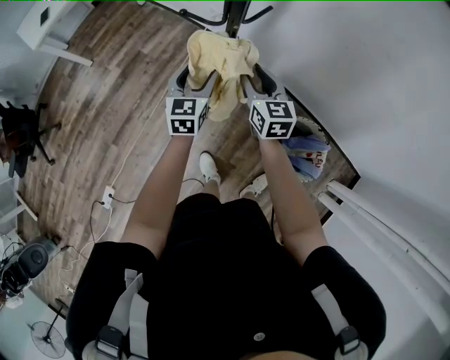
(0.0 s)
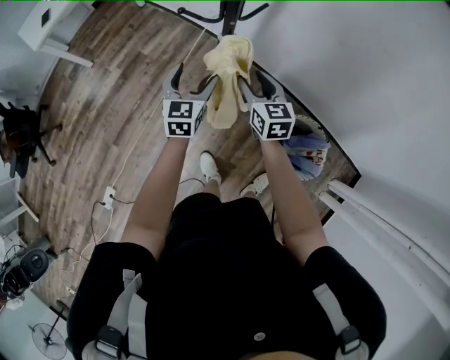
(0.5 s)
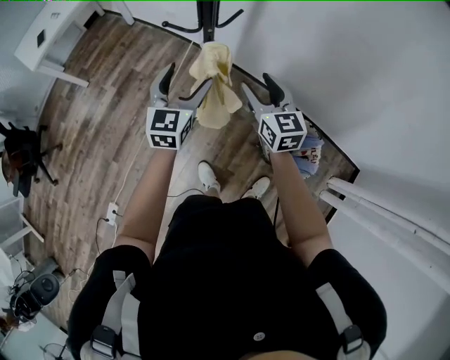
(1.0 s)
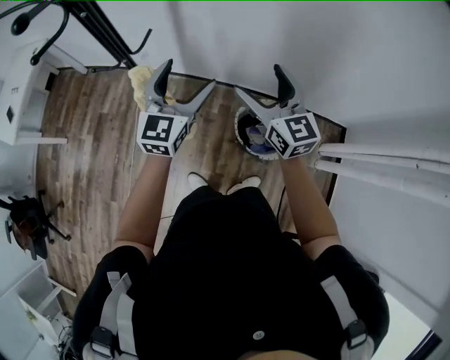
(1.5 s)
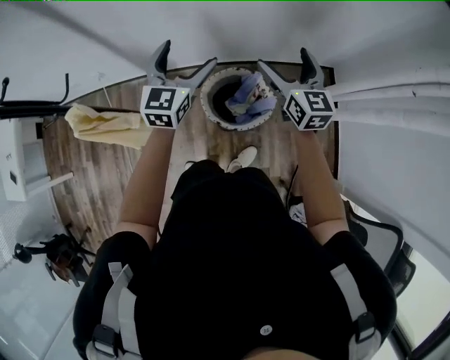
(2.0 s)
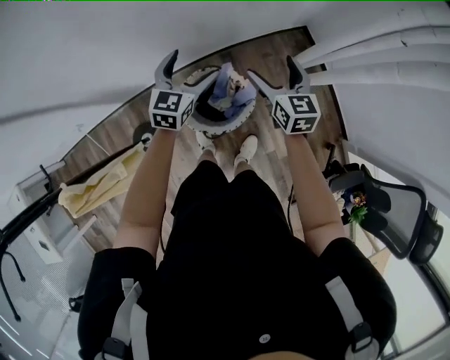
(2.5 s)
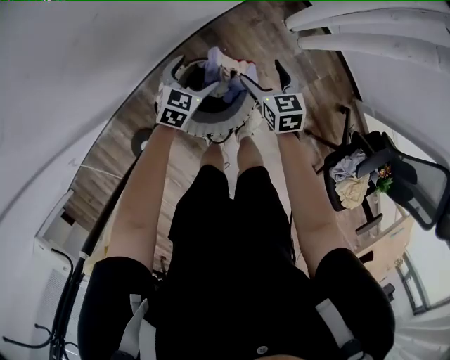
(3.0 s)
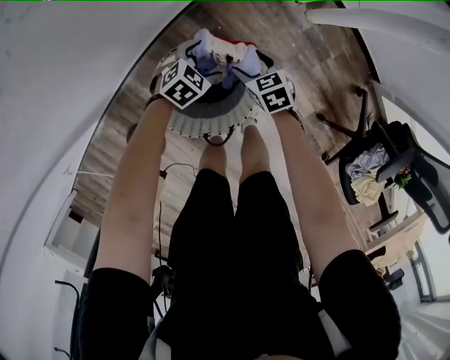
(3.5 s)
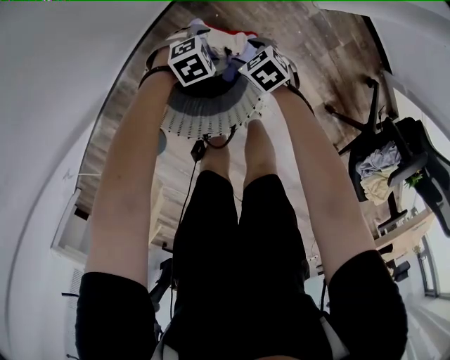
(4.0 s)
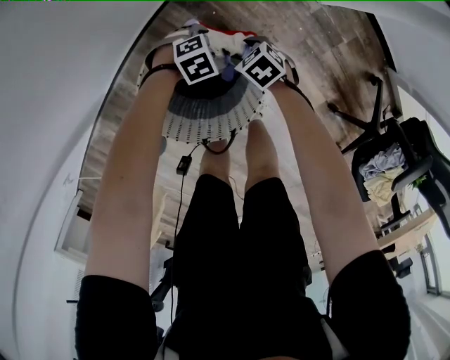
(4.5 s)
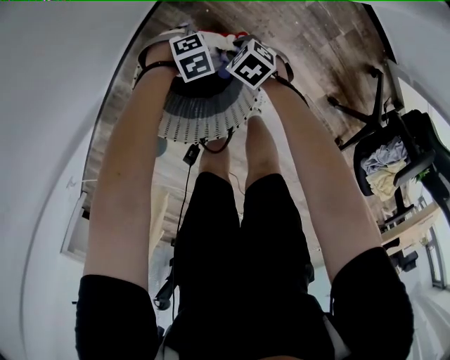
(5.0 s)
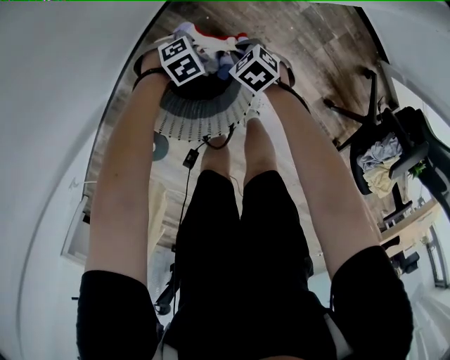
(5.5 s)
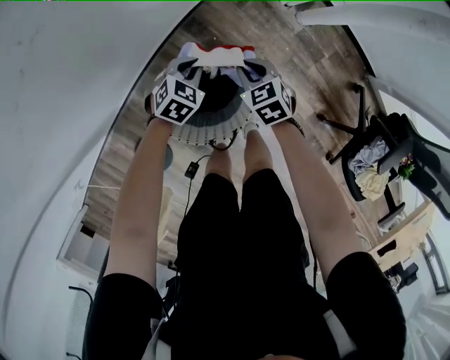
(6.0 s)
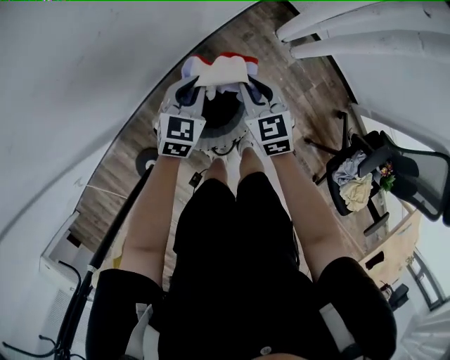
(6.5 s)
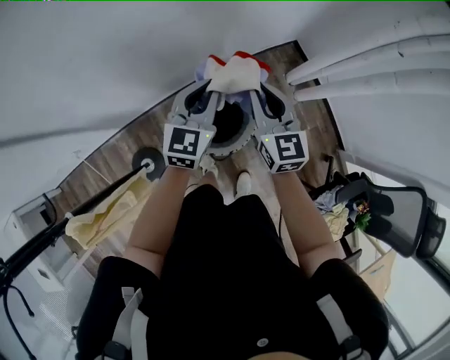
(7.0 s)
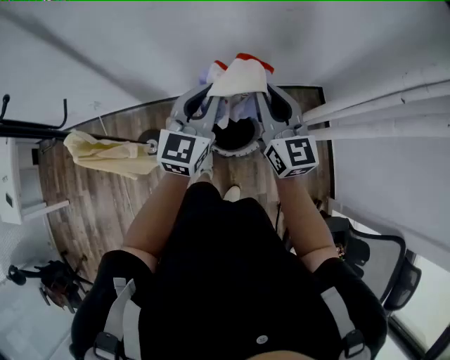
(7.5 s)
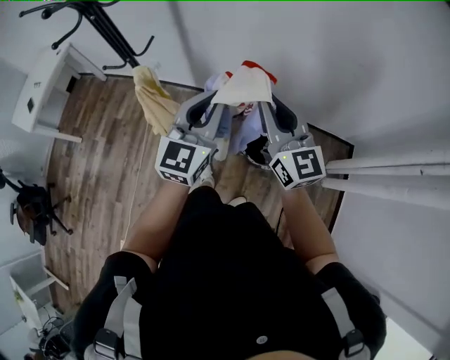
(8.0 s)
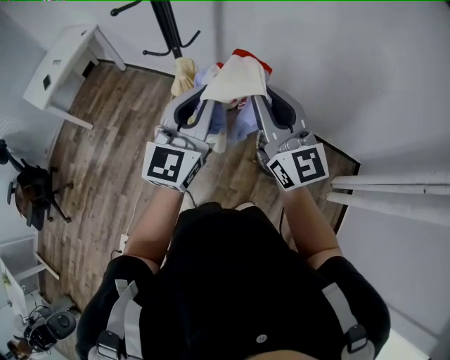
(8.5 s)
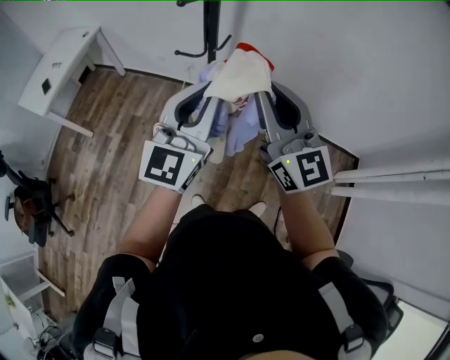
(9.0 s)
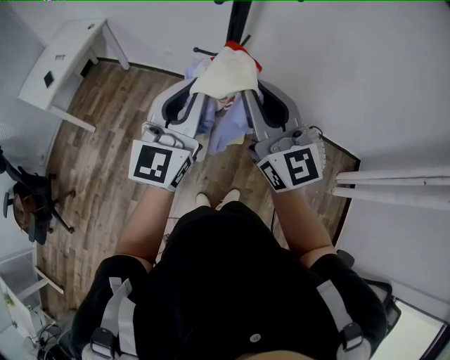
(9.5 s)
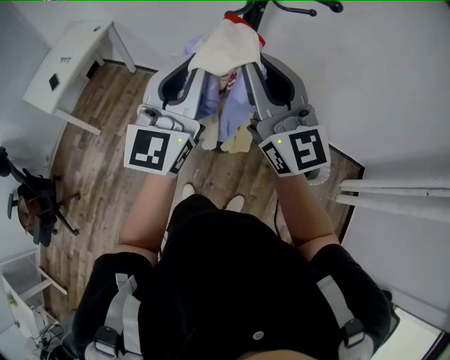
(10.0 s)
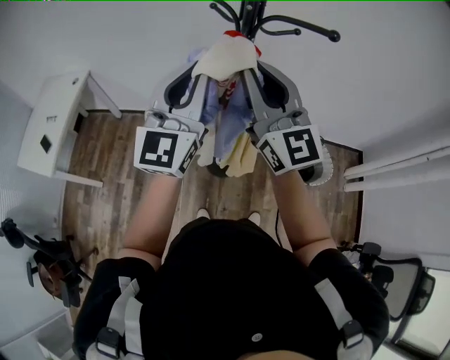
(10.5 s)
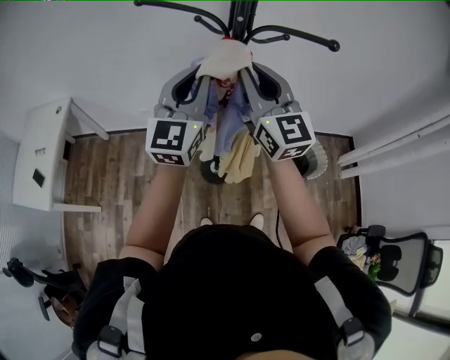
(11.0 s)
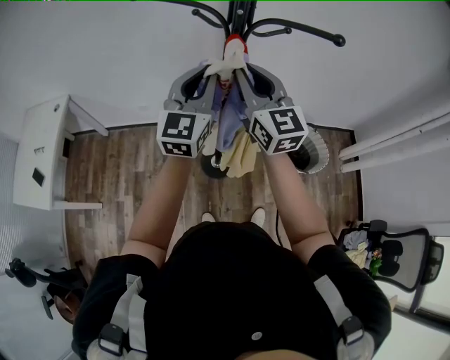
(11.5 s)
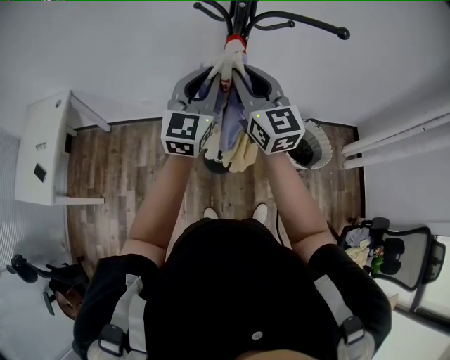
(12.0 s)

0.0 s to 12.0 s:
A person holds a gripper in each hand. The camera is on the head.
0.0 to 2.0 s: Both grippers are carried approximately 60 cm. The left gripper swivels some 50 degrees, and opens its fingers; the right gripper turns by about 40 degrees, and opens its fingers.
2.0 to 4.0 s: The grippers both shift downward by some 70 cm. The right gripper angles its fingers downward, by about 50 degrees, and closes its fingers. The left gripper points its fingers some 60 degrees further downward.
4.0 to 6.0 s: Both grippers travel together upward, about 15 cm. The left gripper swivels some 30 degrees, and closes its fingers, while the right gripper turns by some 20 degrees, and closes its fingers.
6.0 to 8.0 s: The pair of grippers is taken roughly 50 cm. Both grippers move upward, roughly 60 cm. The left gripper tilts its fingers some 60 degrees upward. The right gripper angles its fingers upward, by some 60 degrees.
8.0 to 10.0 s: The two grippers travel together, to the left, about 50 cm.
10.0 to 12.0 s: The grippers both shift forward and downward by roughly 20 cm. The right gripper swivels about 30 degrees. The left gripper rotates some 20 degrees.

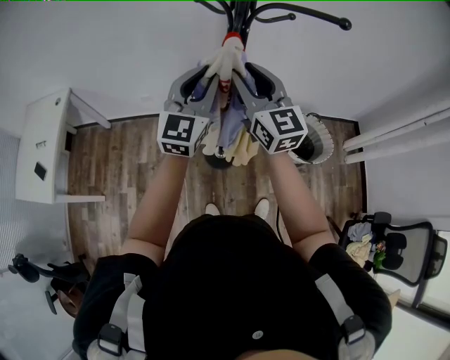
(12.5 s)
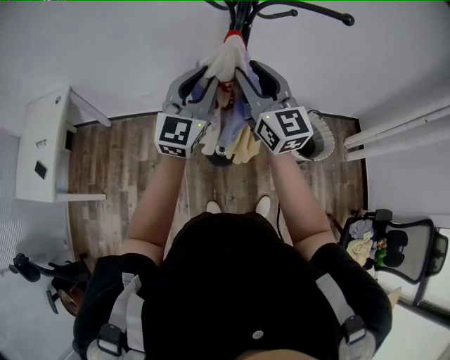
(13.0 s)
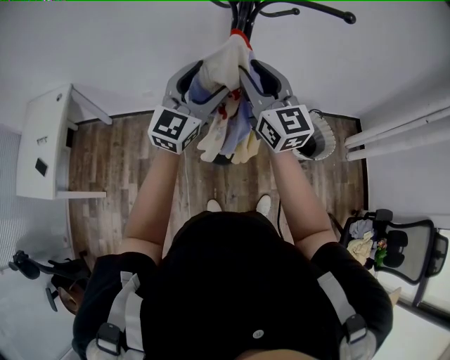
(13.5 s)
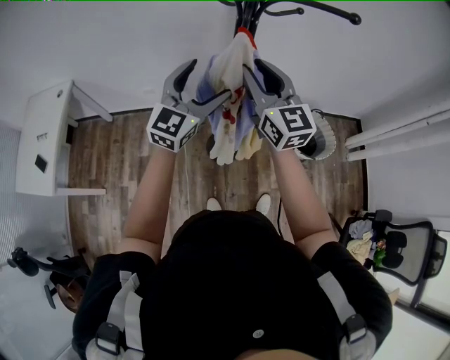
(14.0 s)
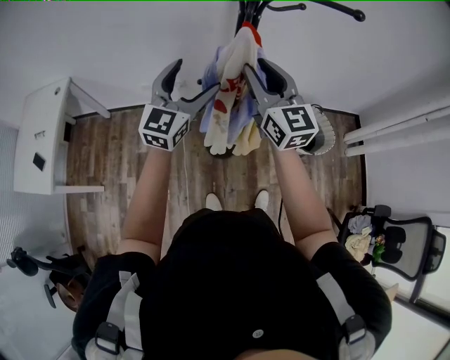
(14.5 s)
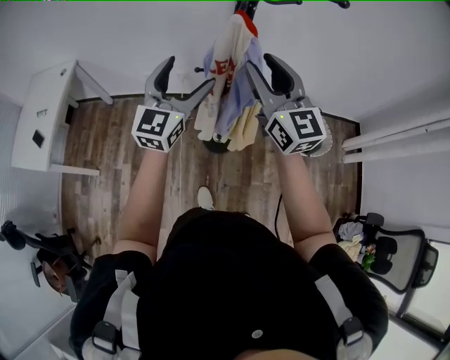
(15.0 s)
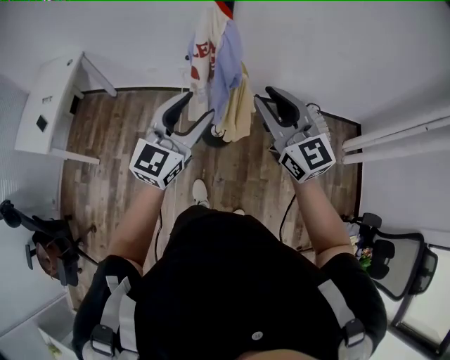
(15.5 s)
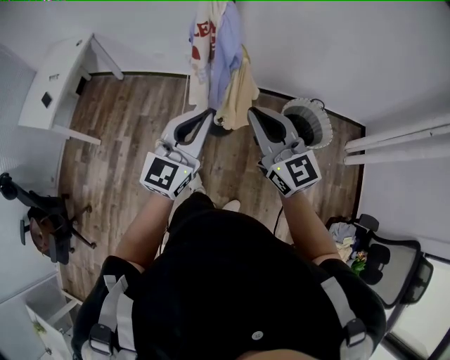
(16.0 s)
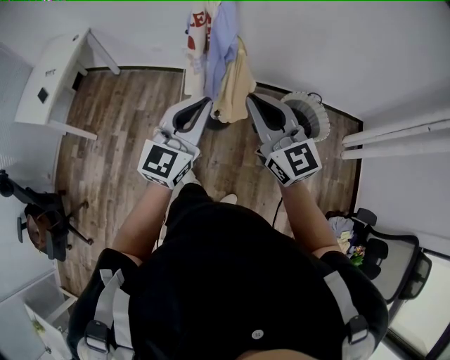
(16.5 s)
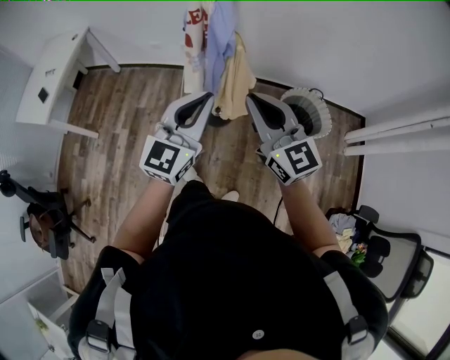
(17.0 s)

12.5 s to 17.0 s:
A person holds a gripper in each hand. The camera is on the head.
12.5 to 14.5 s: The left gripper changes place by about 5 cm, and opens up.
14.5 to 17.0 s: The left gripper moves backward and to the right, roughly 30 cm, and closes; the right gripper shifts about 25 cm backward, and rotates roughly 20 degrees.

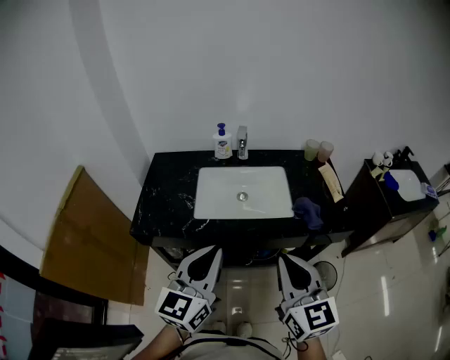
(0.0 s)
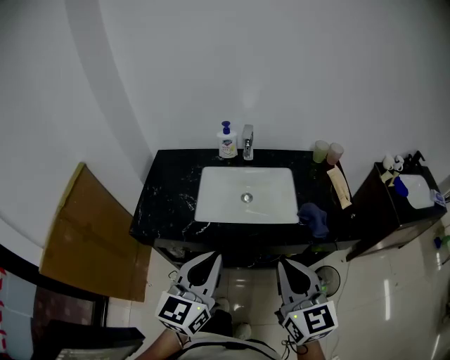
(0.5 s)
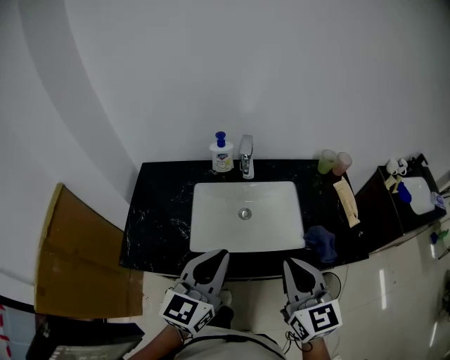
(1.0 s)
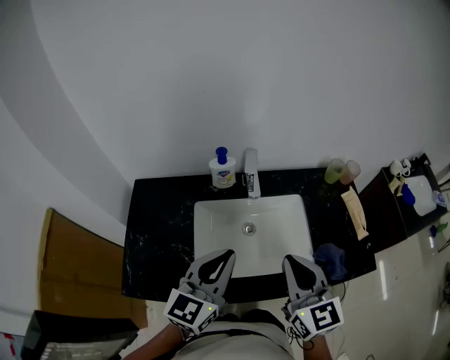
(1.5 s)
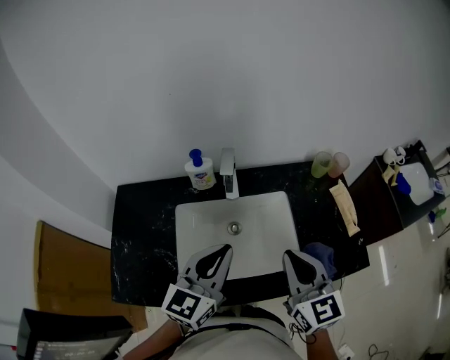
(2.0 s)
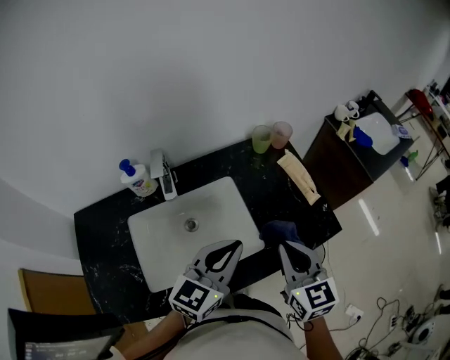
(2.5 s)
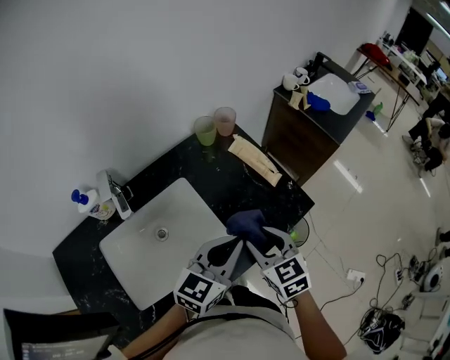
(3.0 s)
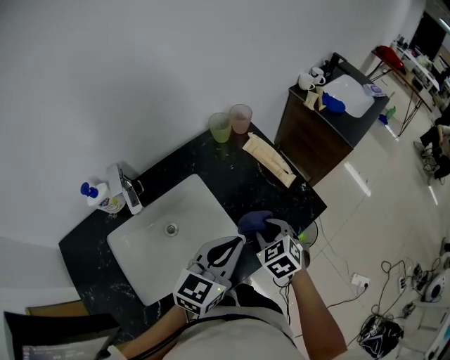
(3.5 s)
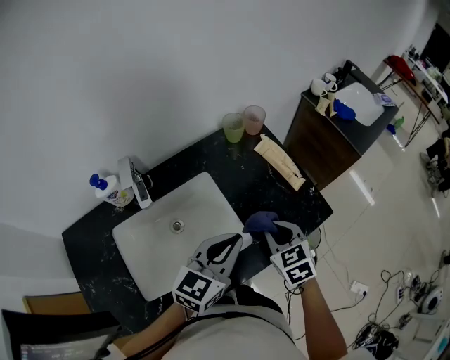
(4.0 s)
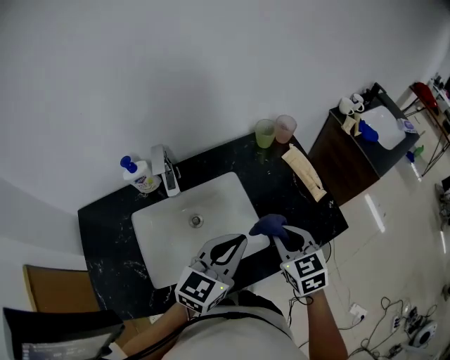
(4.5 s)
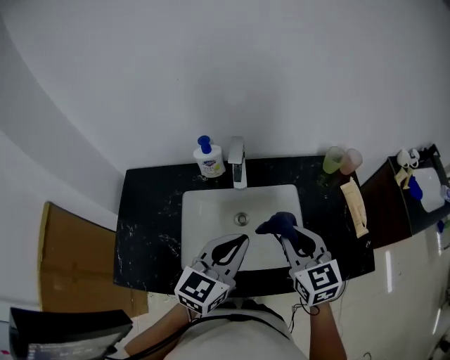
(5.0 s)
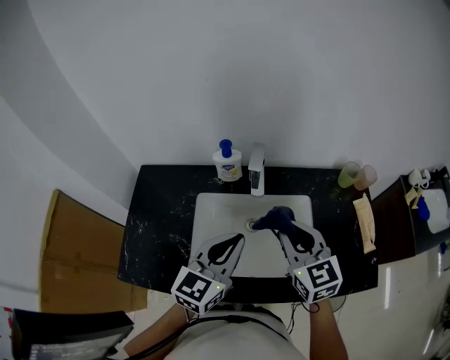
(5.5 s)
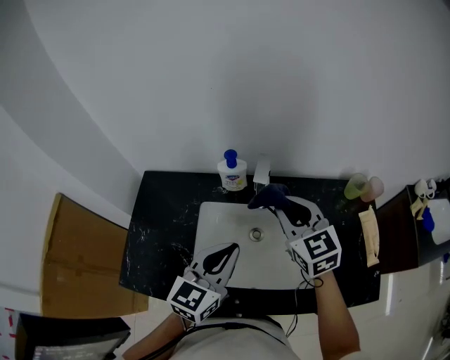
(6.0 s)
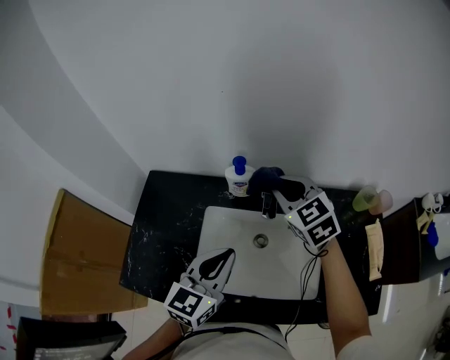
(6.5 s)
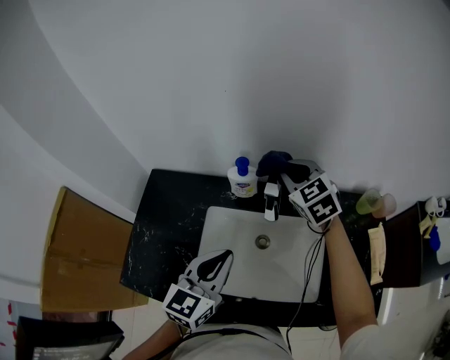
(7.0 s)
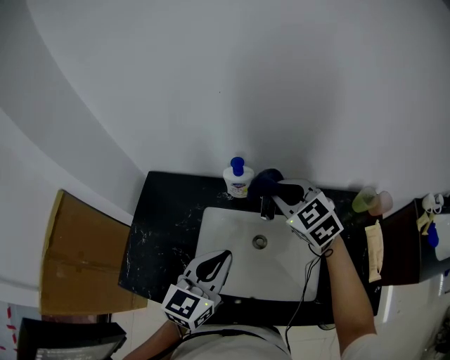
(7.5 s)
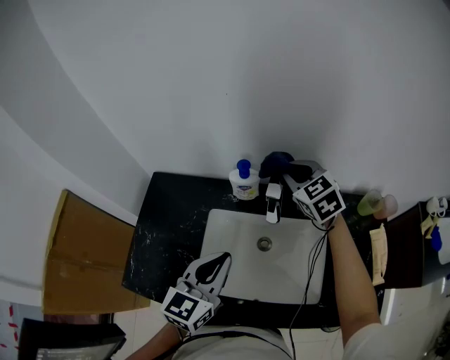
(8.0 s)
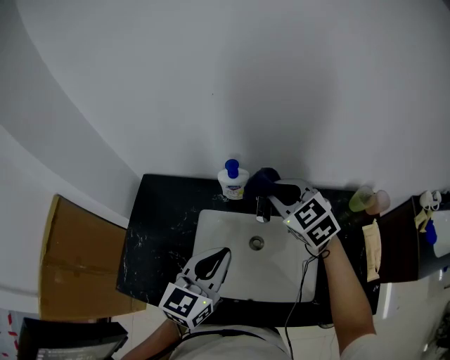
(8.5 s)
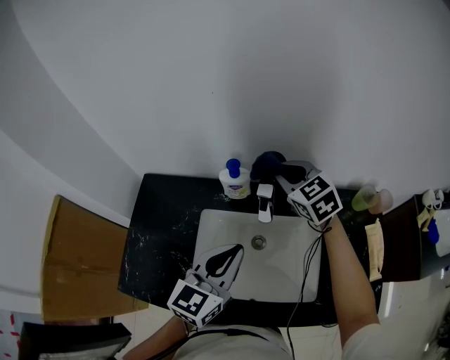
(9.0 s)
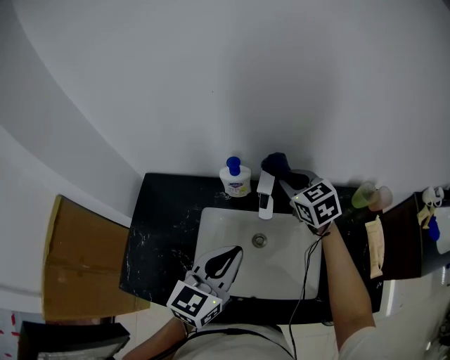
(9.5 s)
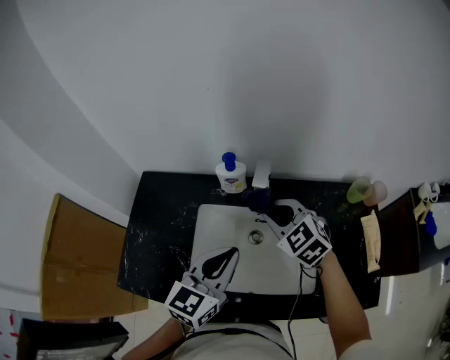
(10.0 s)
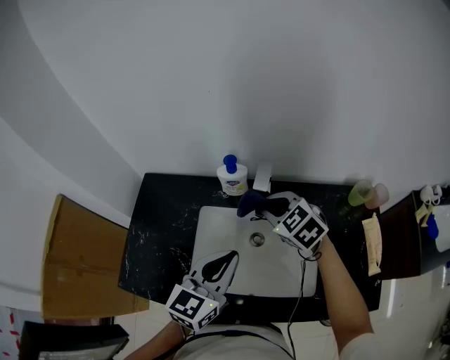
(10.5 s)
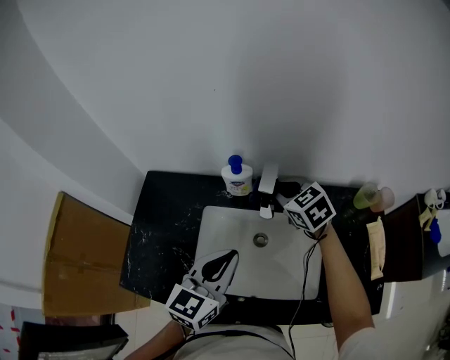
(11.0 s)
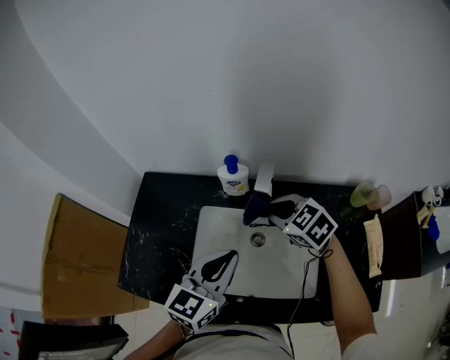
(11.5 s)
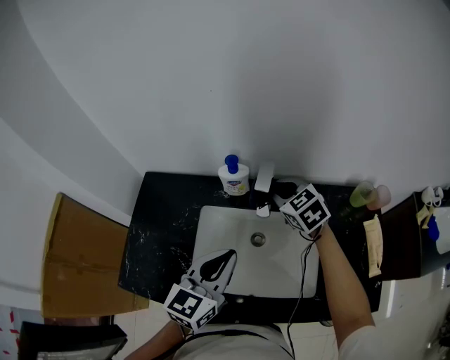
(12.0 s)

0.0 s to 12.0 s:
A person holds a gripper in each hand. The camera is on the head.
0.0 to 2.0 s: The grippers both shift forward by roughly 30 cm.
2.0 to 4.0 s: The left gripper changes place by about 25 cm, and changes its angle by approximately 30 degrees. Meanwhile the right gripper goes roughly 15 cm downward, tilts its fingers about 30 degrees downward, and opens and closes again.
4.0 to 6.0 s: The right gripper moves some 35 cm, and rotates approximately 40 degrees. Meanwhile the left gripper shifts by about 25 cm, and swivels some 40 degrees.
6.0 to 8.0 s: The right gripper moves forward and backward over about 15 cm, changing direction 2 times.
8.0 to 10.0 s: The right gripper goes forward and backward, some 15 cm each way, reversing 2 times.
10.0 to 12.0 s: The right gripper swings forward and backward, some 10 cm each way, with 2 reversals.
